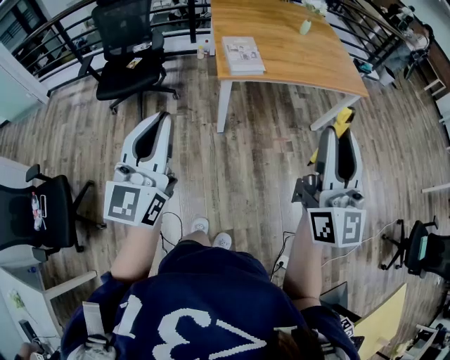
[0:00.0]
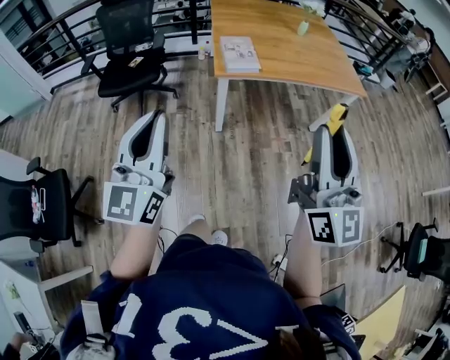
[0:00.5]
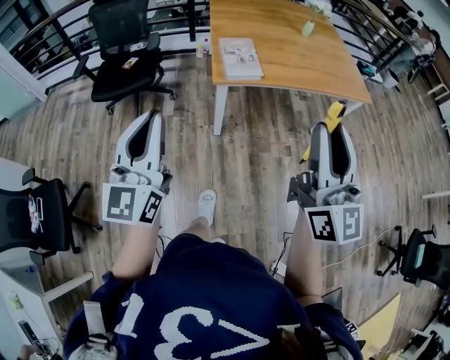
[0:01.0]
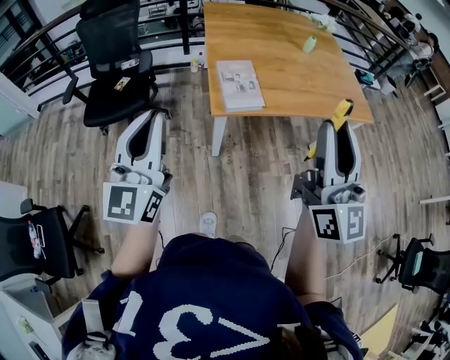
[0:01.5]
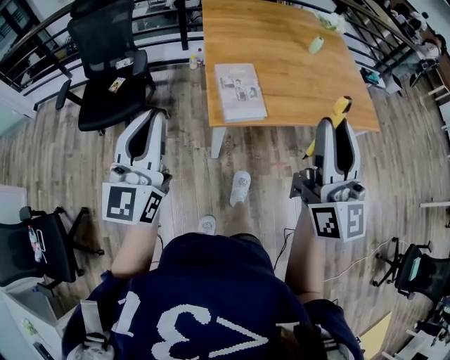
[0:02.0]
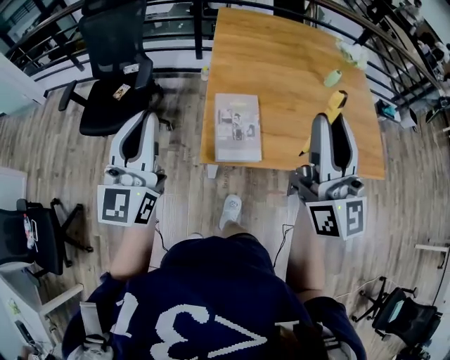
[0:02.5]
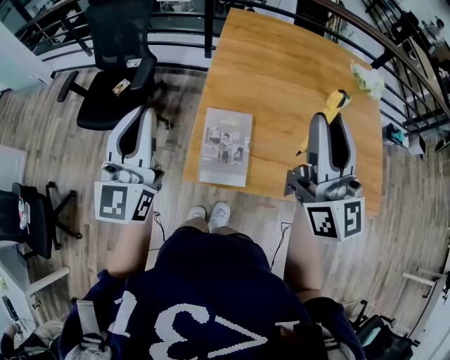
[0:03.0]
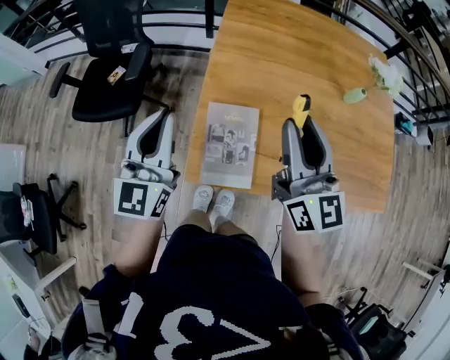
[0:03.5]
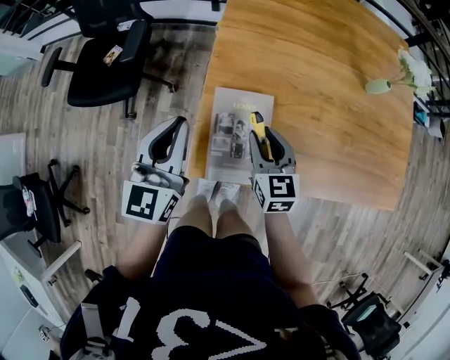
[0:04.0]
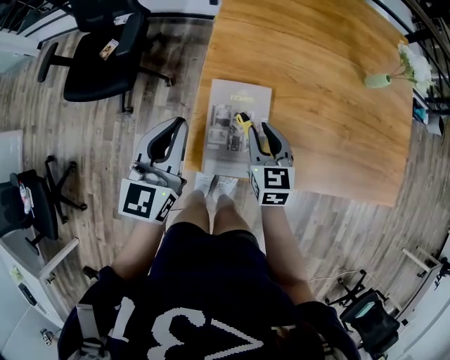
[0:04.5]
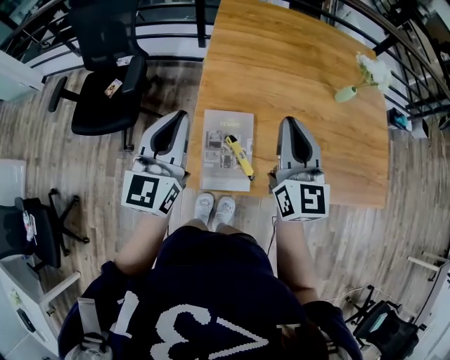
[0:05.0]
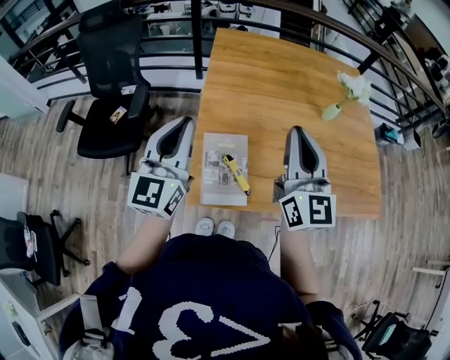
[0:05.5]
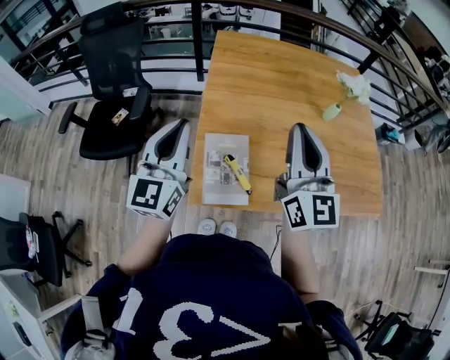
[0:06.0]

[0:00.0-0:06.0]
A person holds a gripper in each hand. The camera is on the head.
0:00.0 to 0:02.0: The grippers both shift forward by some 30 cm.
0:02.0 to 0:04.0: The left gripper moves forward, downward and to the right, about 35 cm. Meanwhile the right gripper is displaced forward and downward by approximately 50 cm, and tilts its fingers roughly 50 degrees downward.
0:04.0 to 0:06.0: The right gripper heads upward, covering roughly 30 cm, tips its fingers upward by approximately 40 degrees, and closes its fingers, while the left gripper moves upward, approximately 15 cm.

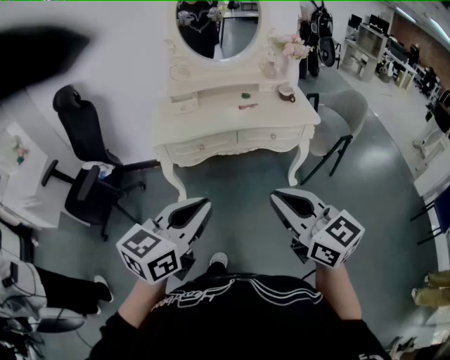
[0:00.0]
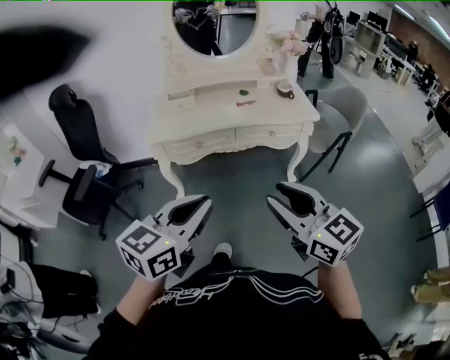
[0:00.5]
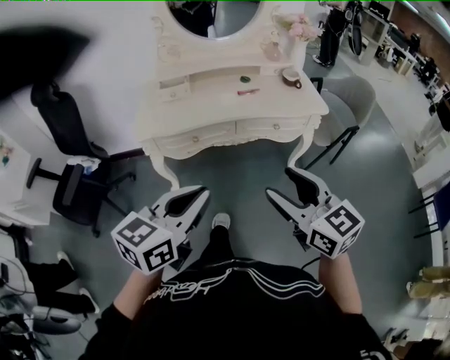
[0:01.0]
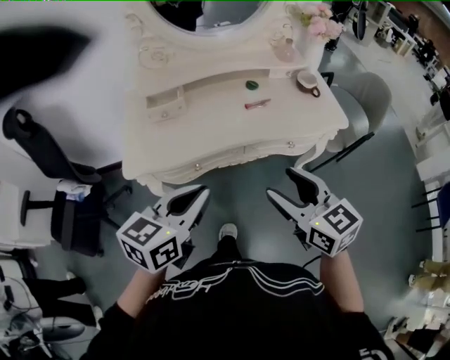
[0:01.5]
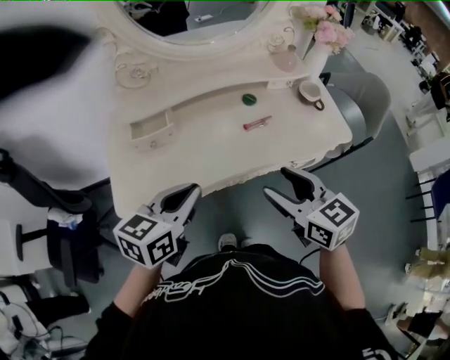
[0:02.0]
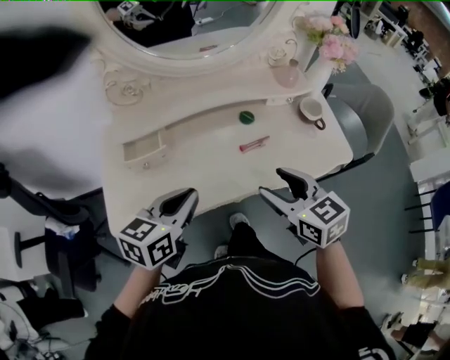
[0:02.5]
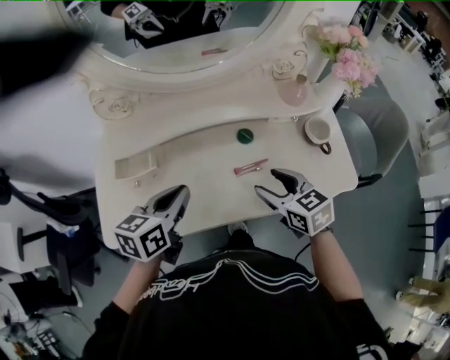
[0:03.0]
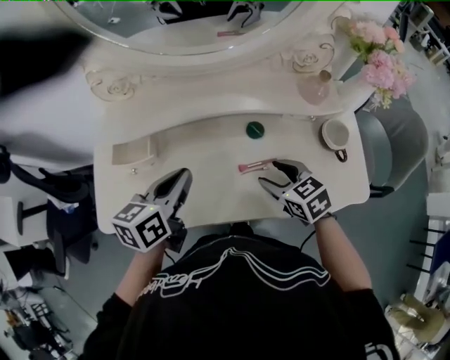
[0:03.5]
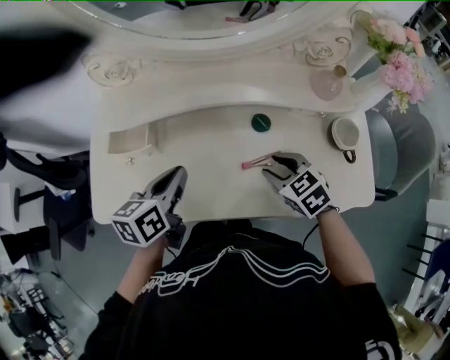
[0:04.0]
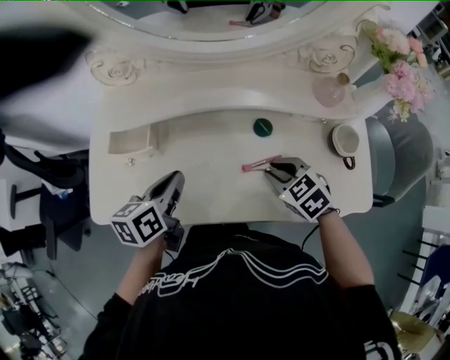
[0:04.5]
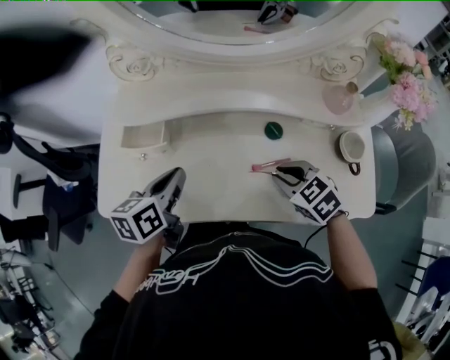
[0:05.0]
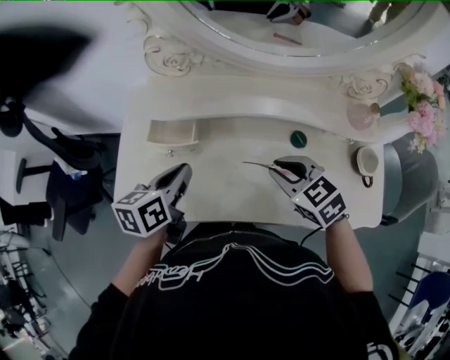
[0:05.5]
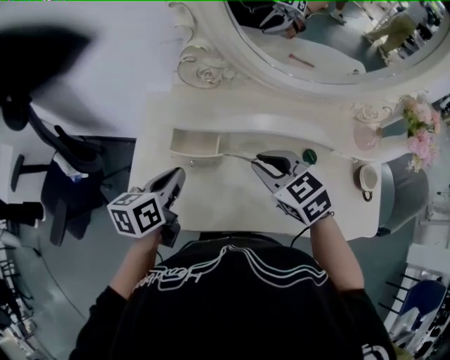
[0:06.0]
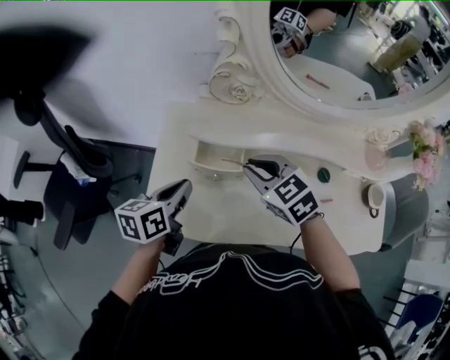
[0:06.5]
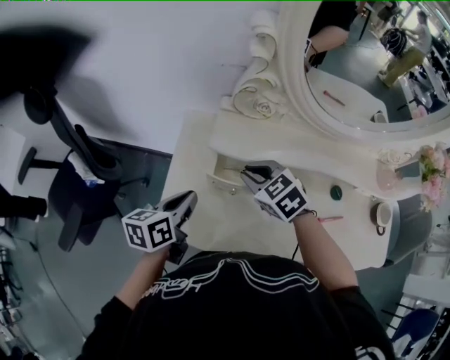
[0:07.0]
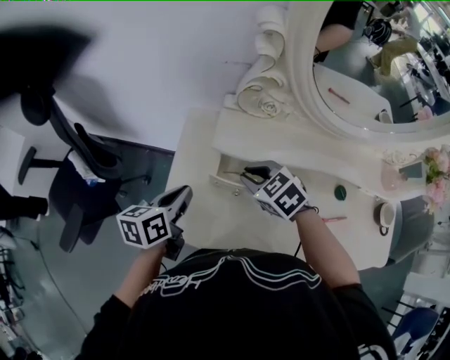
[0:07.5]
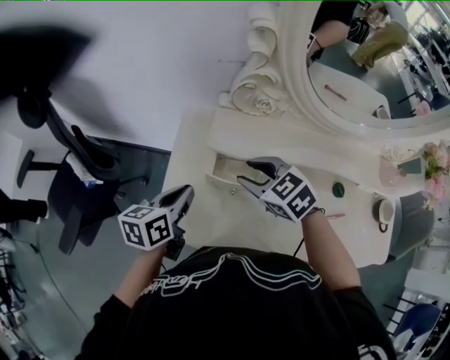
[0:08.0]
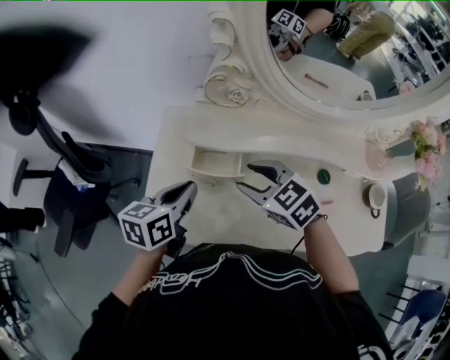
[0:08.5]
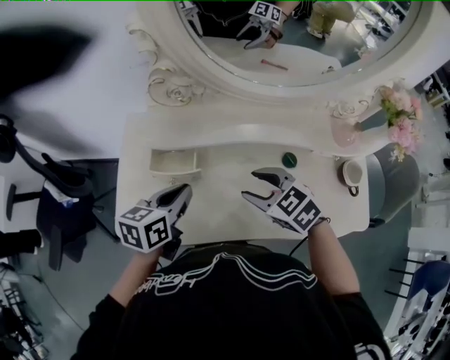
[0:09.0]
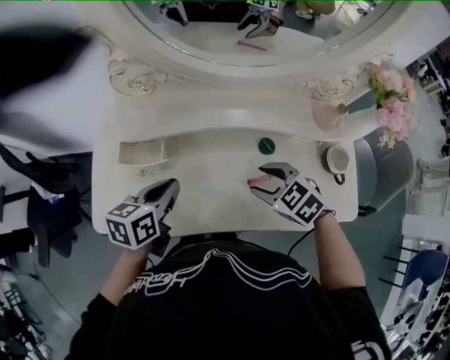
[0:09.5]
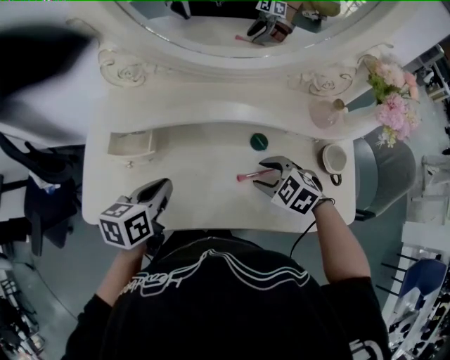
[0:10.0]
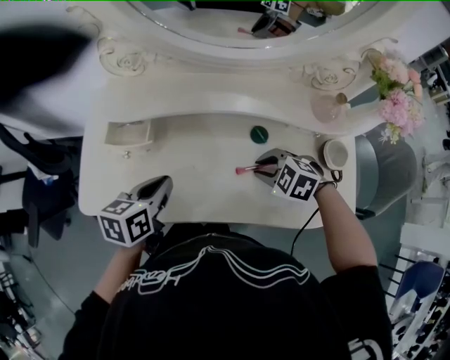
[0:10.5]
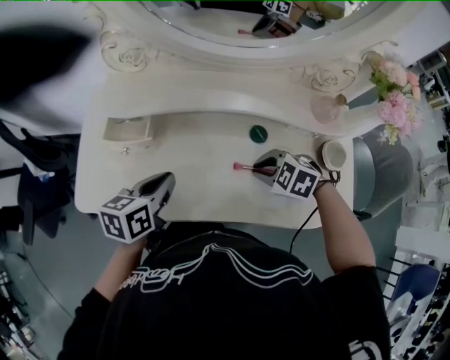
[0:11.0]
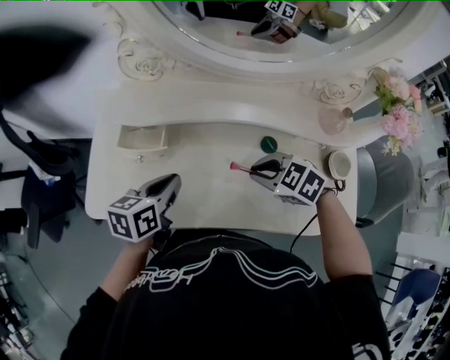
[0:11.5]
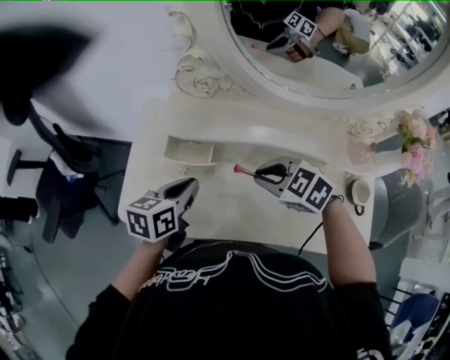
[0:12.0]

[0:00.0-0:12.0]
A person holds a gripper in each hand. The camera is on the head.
0:00.0 to 0:02.0: The pair of grippers is taken forward, roughly 50 cm. The right gripper turns by roughly 20 degrees, and opens up.
0:02.0 to 0:04.0: The grippers both shift forward and downward by about 25 cm. The left gripper swivels some 30 degrees. Meanwhile the right gripper rotates about 40 degrees.
0:04.0 to 0:06.0: The left gripper moves to the left, approximately 20 cm, while the right gripper goes roughly 25 cm to the left, upward and forward, and closes its fingers.
0:06.0 to 0:08.0: The right gripper shifts about 15 cm to the left and forward, and opens its fingers; the left gripper goes some 10 cm to the left.
0:08.0 to 0:10.0: The right gripper moves to the right and backward, approximately 35 cm. Meanwhile the left gripper shifts roughly 25 cm to the right.
0:10.0 to 0:12.0: The left gripper moves to the left, approximately 10 cm; the right gripper is displaced to the left, upward and forward by some 20 cm, and closes.

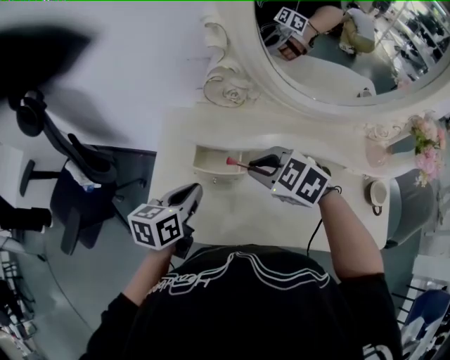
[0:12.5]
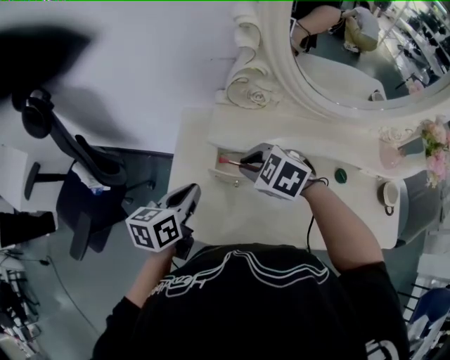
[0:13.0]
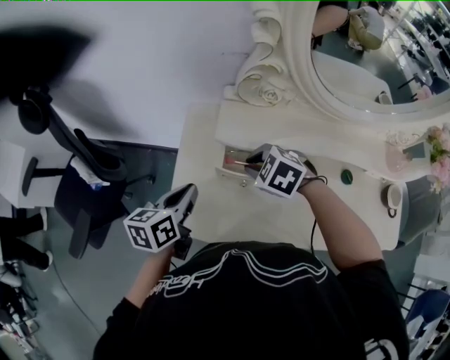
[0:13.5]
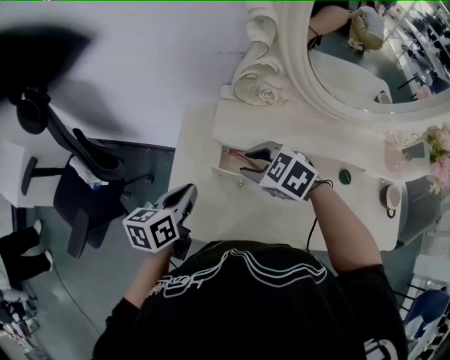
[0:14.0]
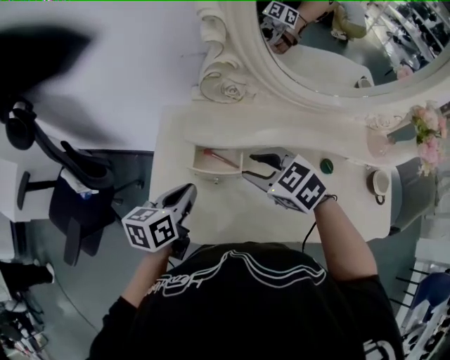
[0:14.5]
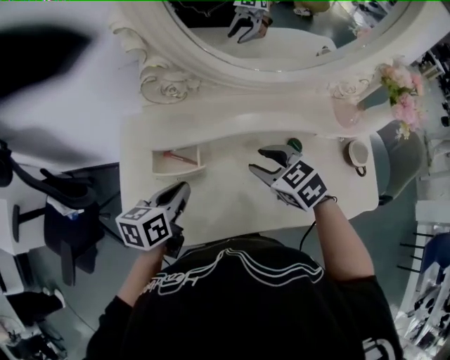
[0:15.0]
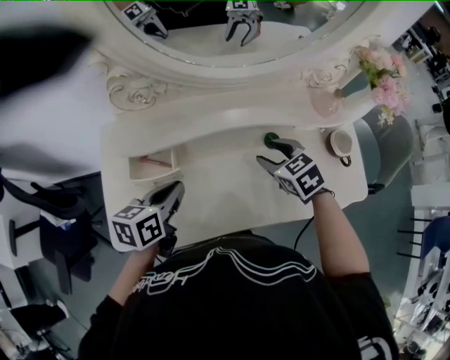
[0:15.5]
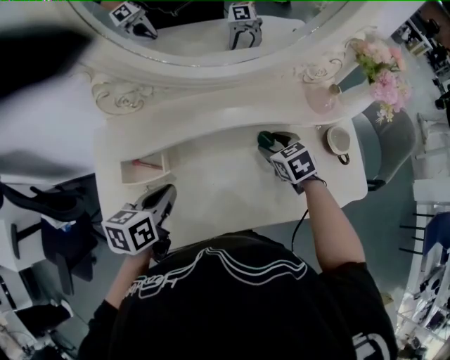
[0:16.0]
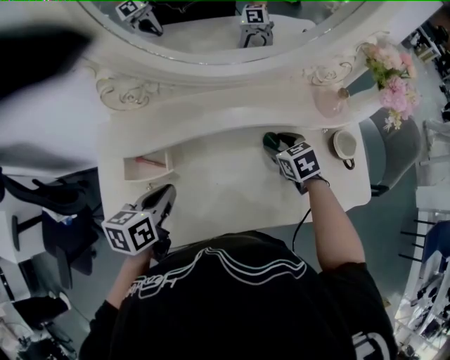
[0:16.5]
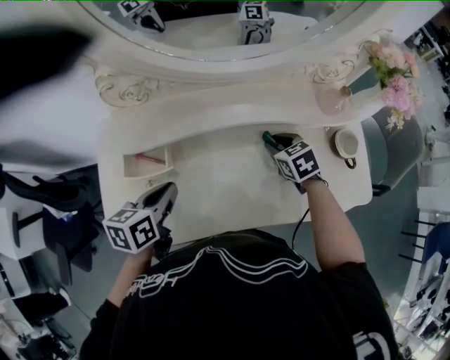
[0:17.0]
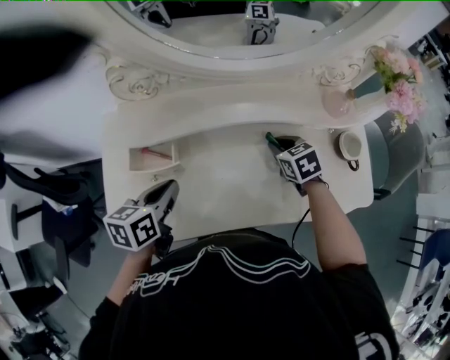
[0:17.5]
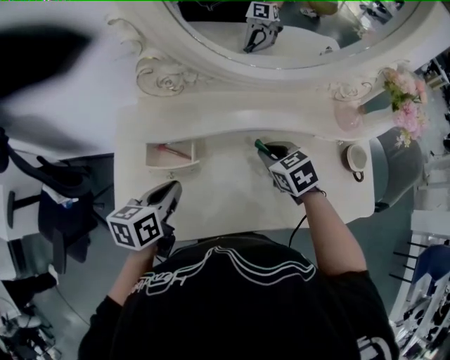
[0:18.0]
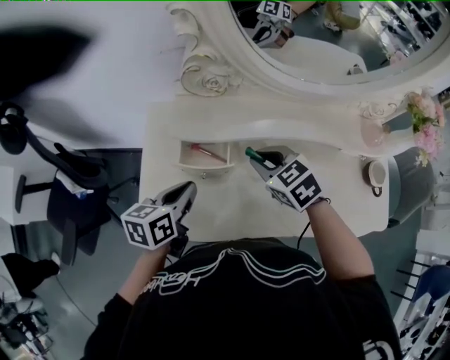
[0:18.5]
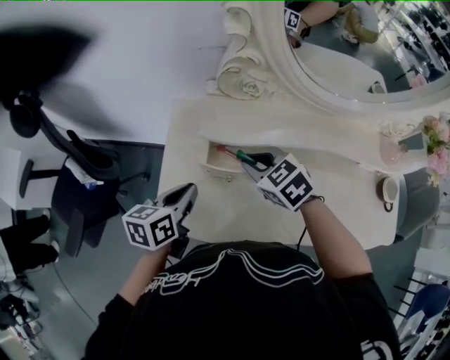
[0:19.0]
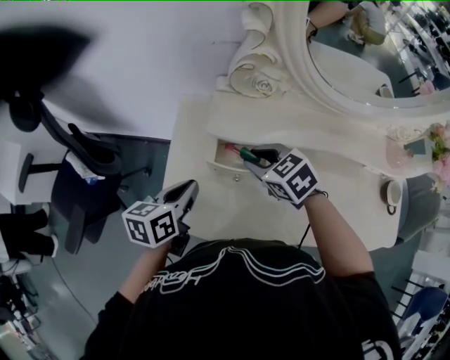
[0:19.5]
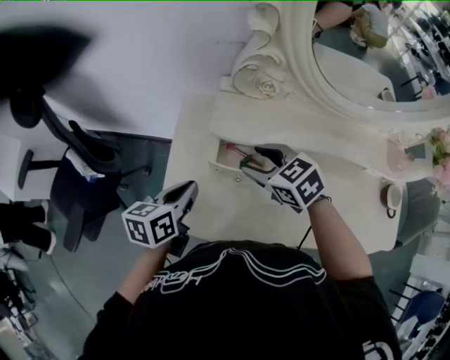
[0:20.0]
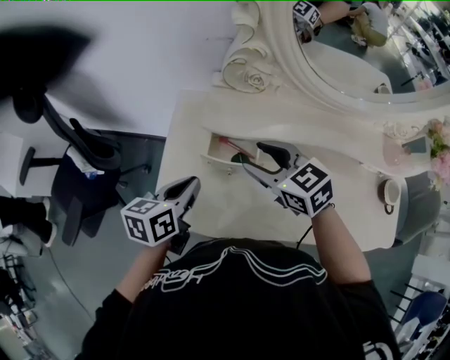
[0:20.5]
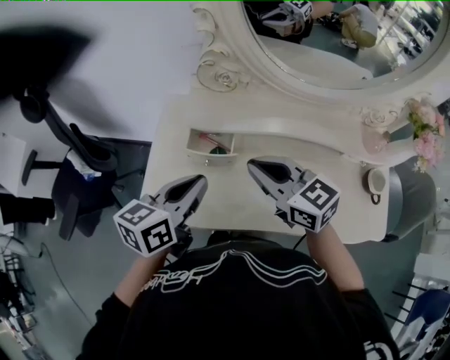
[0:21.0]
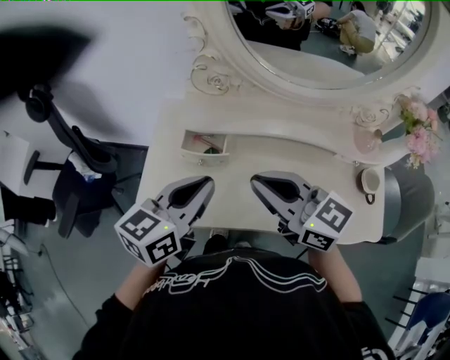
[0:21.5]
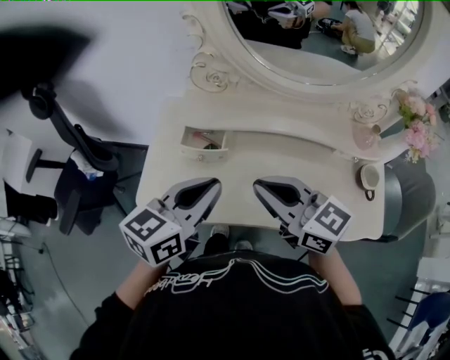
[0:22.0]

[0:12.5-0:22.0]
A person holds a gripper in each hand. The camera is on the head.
0:12.5 to 0:14.5: The right gripper reaches about 10 cm downward, then returns, and opens. Meanwhile the left gripper reaches about 10 cm to the left, then returns.
0:14.5 to 0:16.5: The right gripper shifts by about 35 cm, and swivels approximately 40 degrees, while the left gripper moves about 15 cm.
0:16.5 to 0:18.0: The left gripper shifts by some 5 cm. The right gripper moves to the left, some 10 cm, and closes.
0:18.0 to 0:20.0: The left gripper moves to the left, approximately 15 cm, while the right gripper heads to the left, covering roughly 25 cm, turns by about 20 degrees, and opens up.
0:20.0 to 0:22.0: The right gripper travels backward, upward and to the right by about 25 cm, angles its fingers upward, by about 30 degrees, and closes; the left gripper goes some 30 cm to the right, upward and backward, and turns by about 30 degrees.
